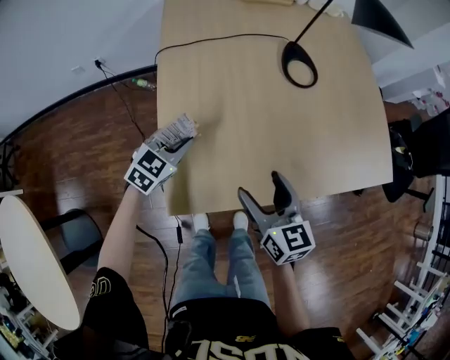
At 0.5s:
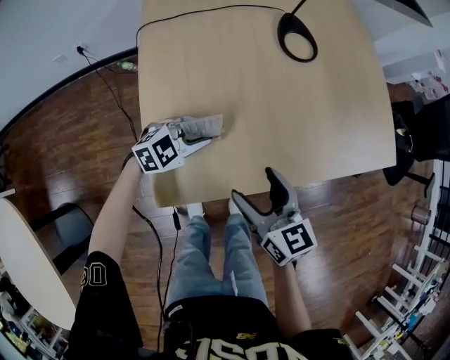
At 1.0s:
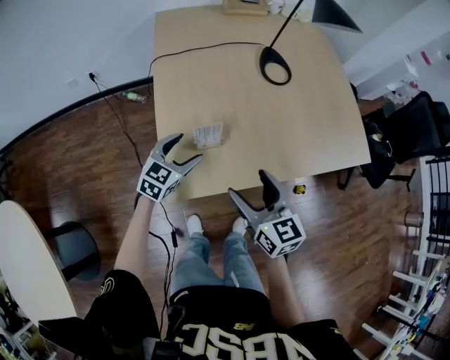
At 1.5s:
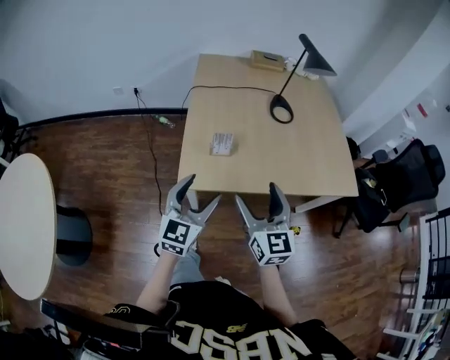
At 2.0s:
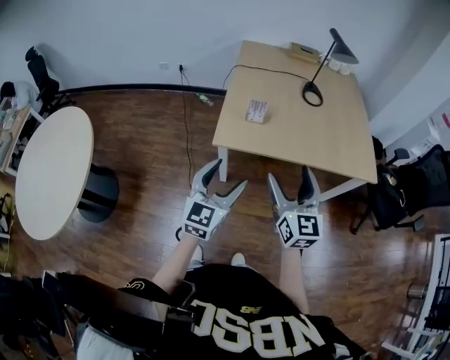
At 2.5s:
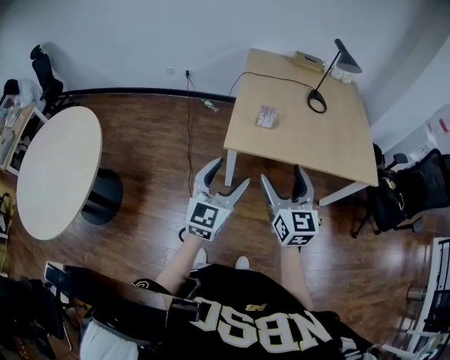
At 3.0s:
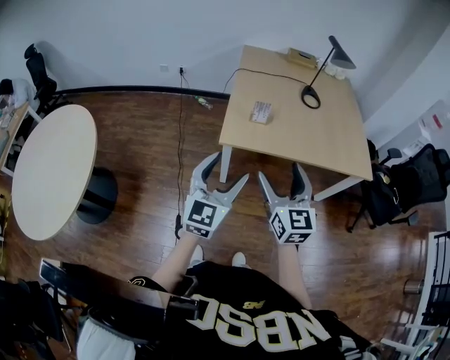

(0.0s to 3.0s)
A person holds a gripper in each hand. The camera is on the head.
0.0s - 1.5s: The left gripper changes place by some 40 cm, rotates some 40 degrees, and opens. Meanwhile the right gripper moves roughly 25 cm, and changes its angle by roughly 20 degrees.
1.5s - 3.0s: The two grippers go some 20 cm backward.

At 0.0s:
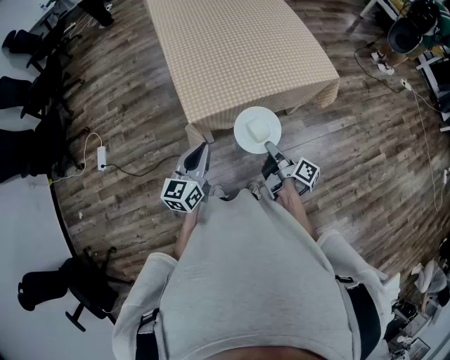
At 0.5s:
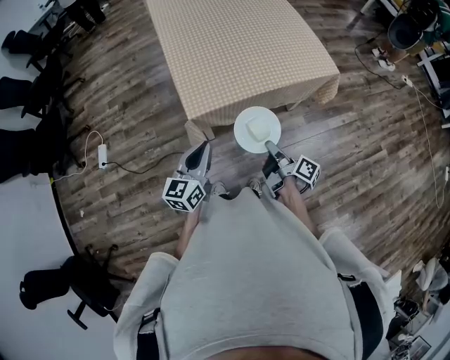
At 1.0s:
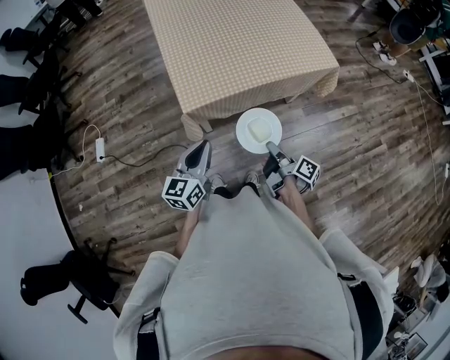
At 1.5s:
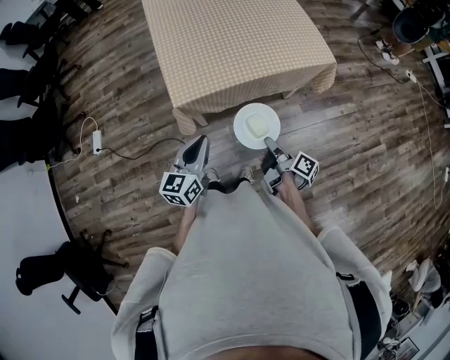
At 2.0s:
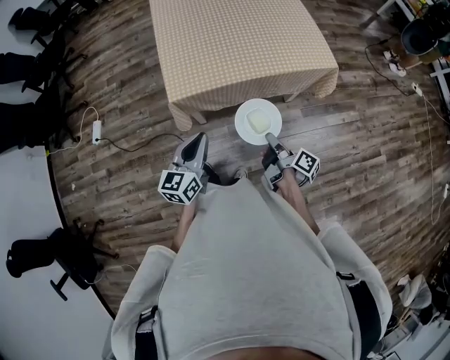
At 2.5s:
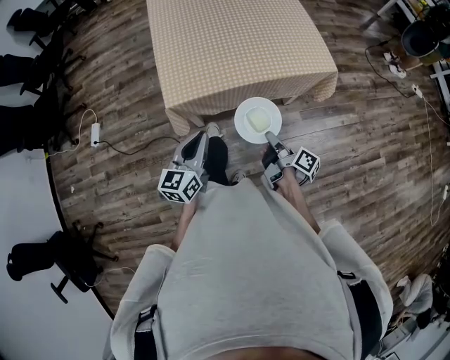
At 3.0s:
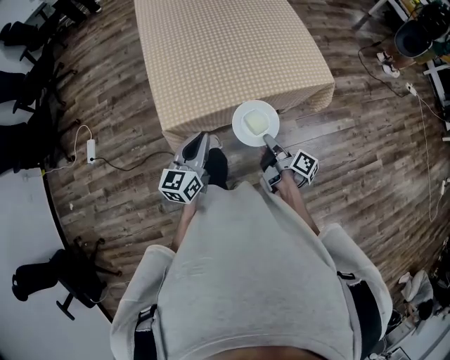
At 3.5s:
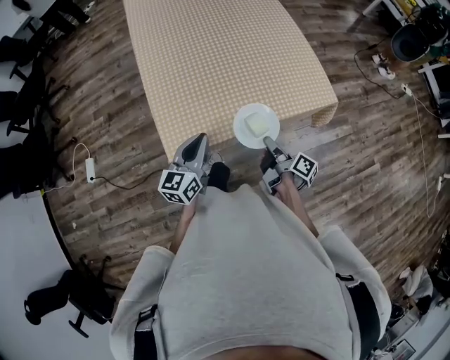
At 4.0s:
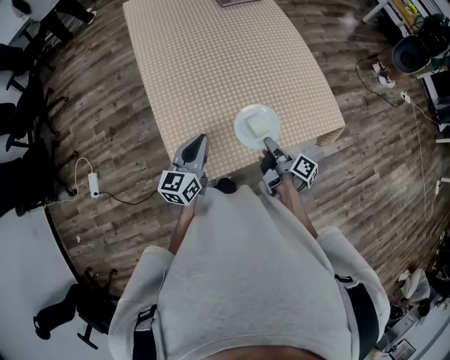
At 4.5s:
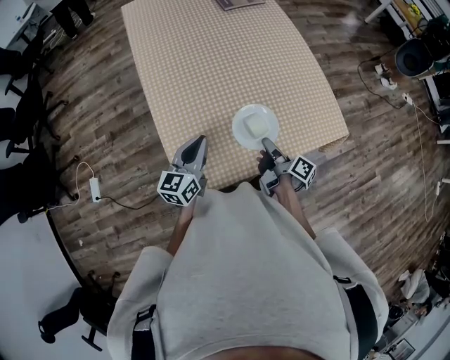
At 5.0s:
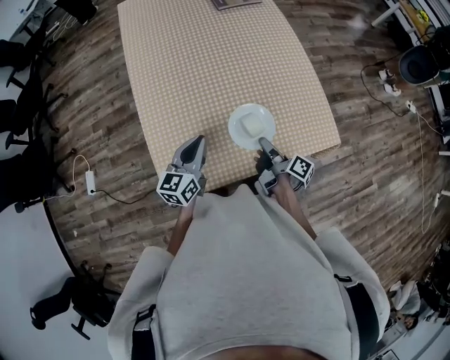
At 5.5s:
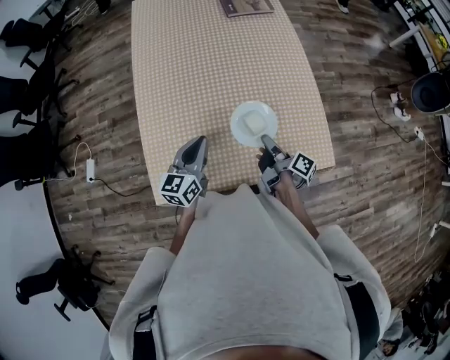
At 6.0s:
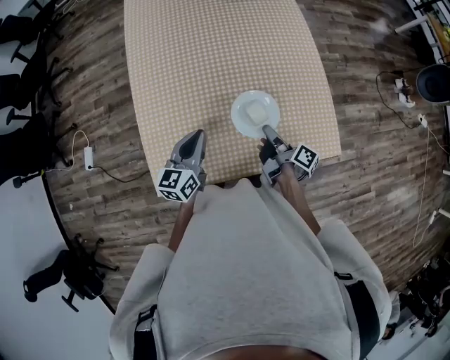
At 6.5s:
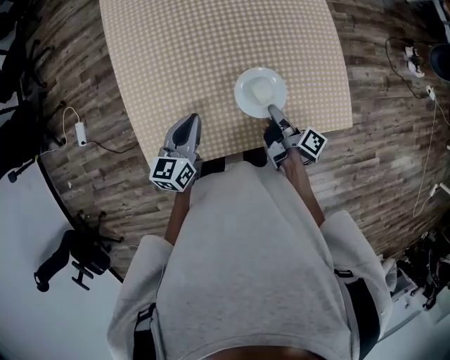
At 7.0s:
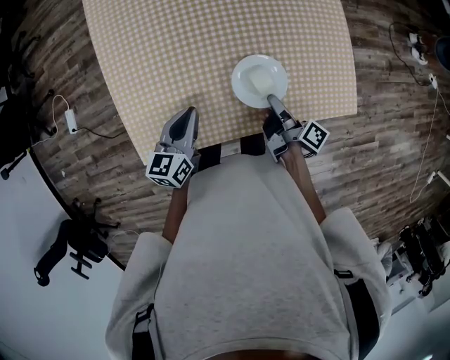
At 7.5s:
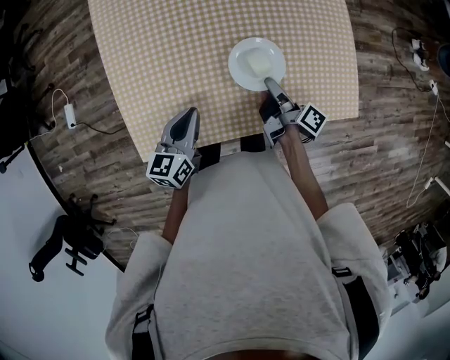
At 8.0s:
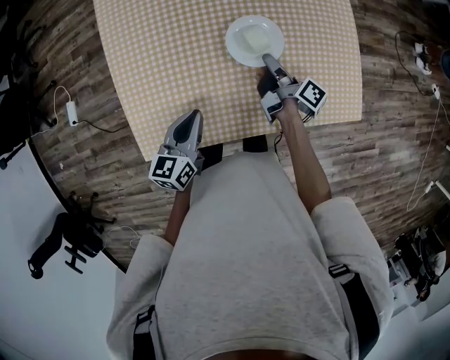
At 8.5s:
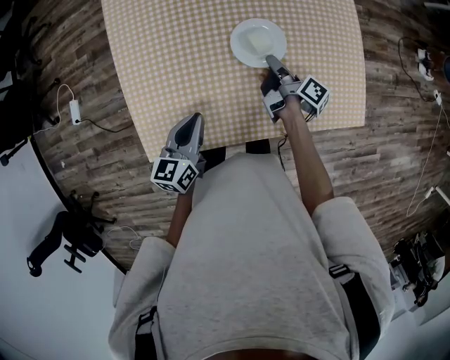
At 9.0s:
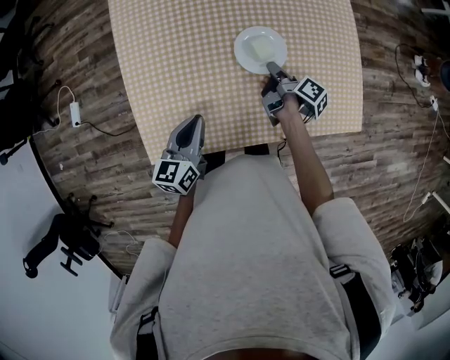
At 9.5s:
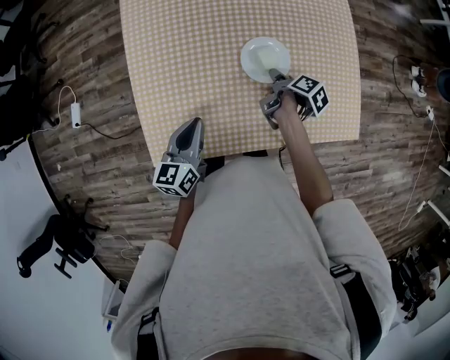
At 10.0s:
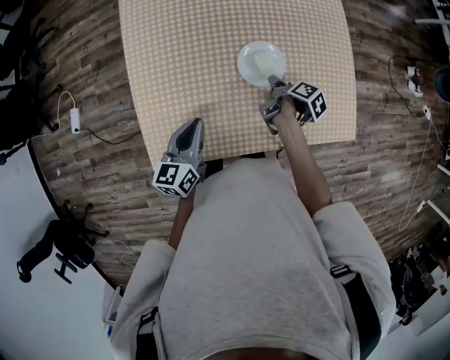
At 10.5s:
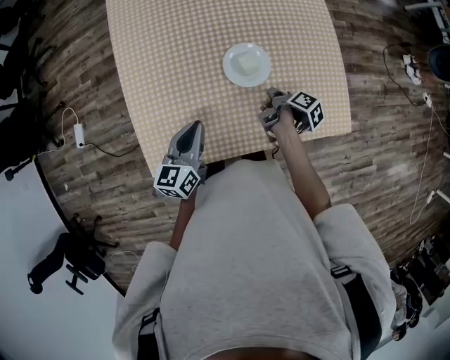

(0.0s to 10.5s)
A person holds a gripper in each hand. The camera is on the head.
0.0s - 2.0s: The left gripper moves approximately 10 cm.
2.0s - 4.0s: The left gripper moves about 35 cm.
4.0s - 6.5s: The left gripper changes place by about 15 cm.
6.5s - 8.5s: The left gripper moves about 5 cm.
8.5s - 10.5s: The left gripper shifts by some 5 cm.

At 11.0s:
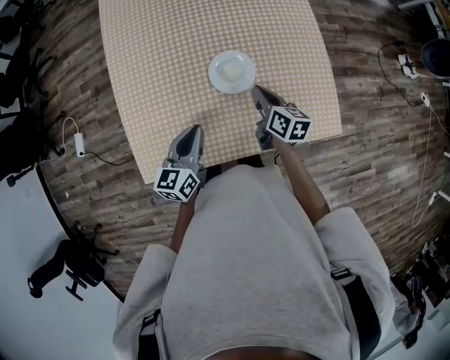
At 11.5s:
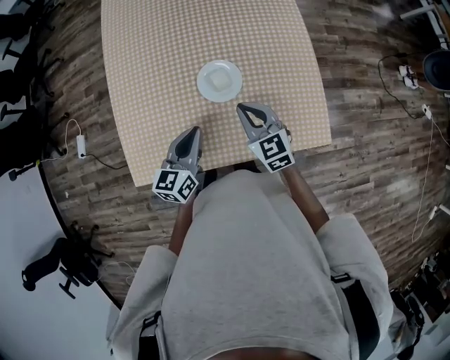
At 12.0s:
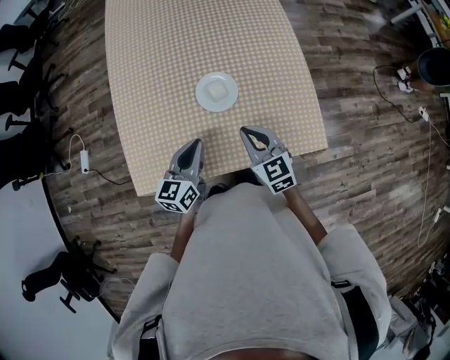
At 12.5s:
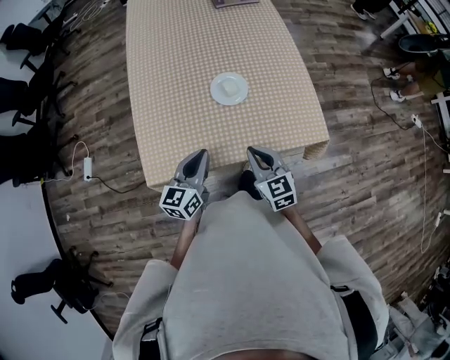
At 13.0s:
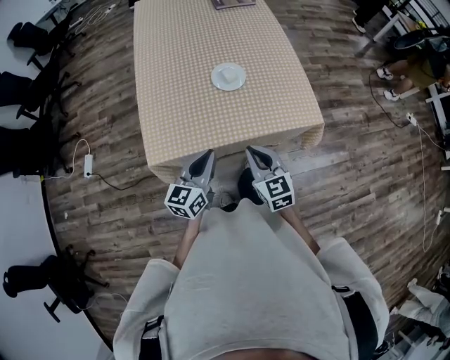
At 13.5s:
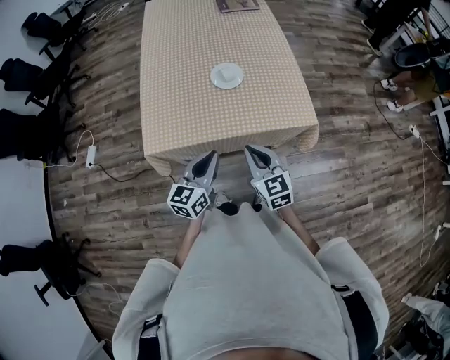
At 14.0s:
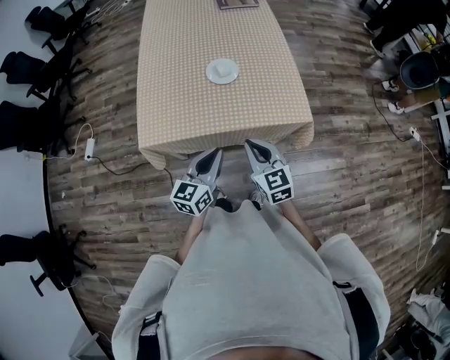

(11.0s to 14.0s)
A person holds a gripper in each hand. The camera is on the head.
11.0s - 12.5s: The left gripper changes place by roughly 10 cm.
12.5s - 14.0s: The left gripper shifts by roughly 20 cm.

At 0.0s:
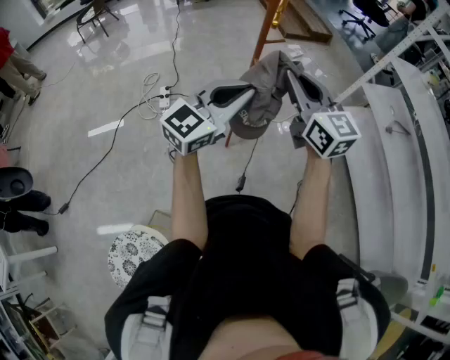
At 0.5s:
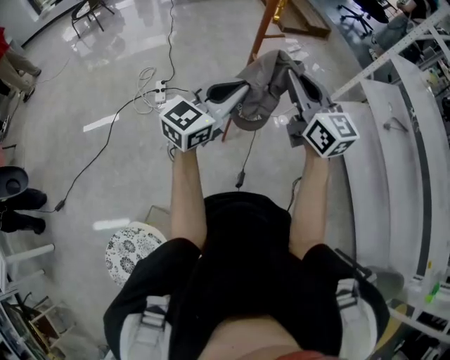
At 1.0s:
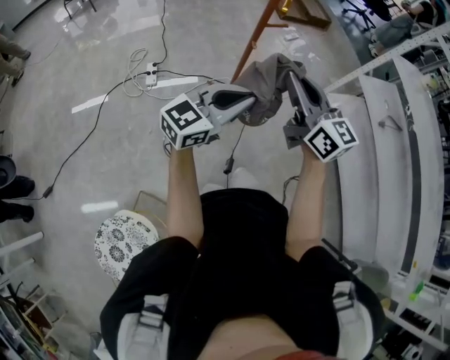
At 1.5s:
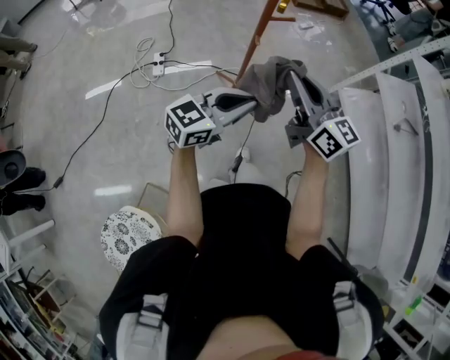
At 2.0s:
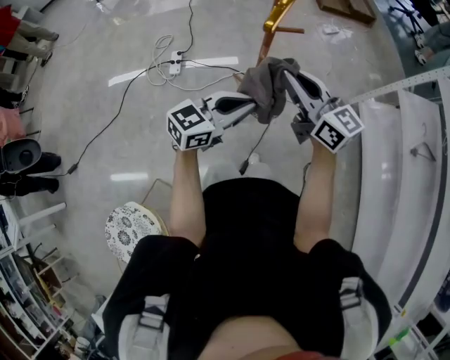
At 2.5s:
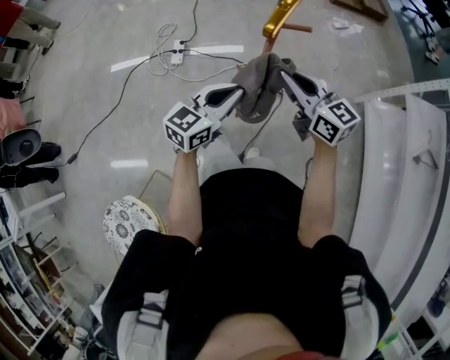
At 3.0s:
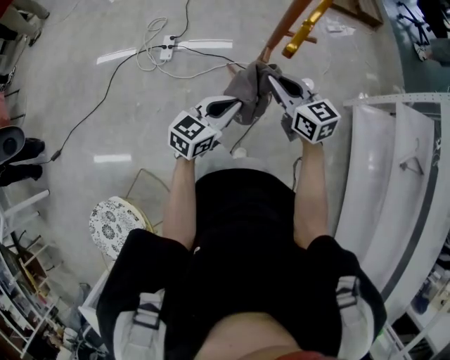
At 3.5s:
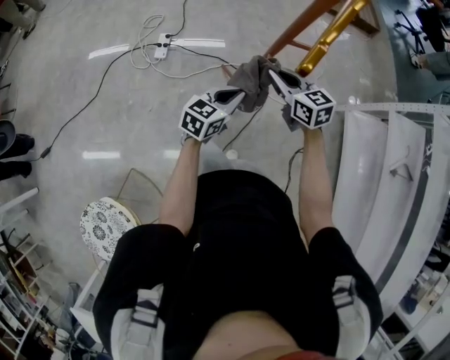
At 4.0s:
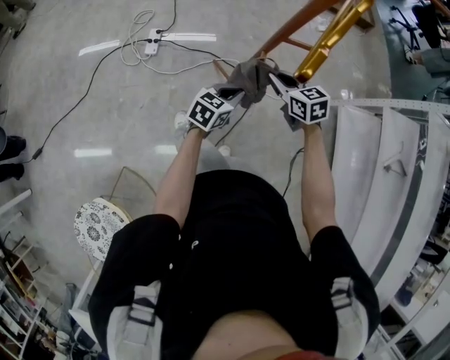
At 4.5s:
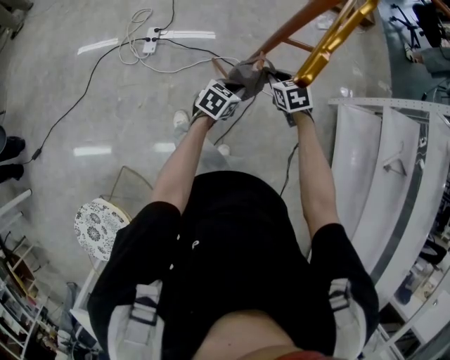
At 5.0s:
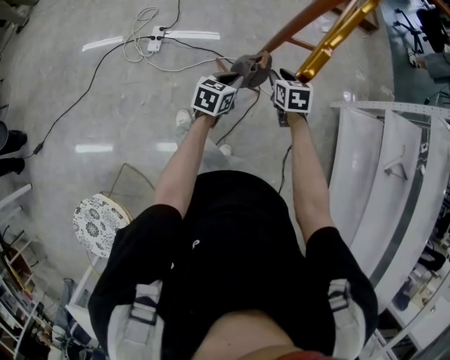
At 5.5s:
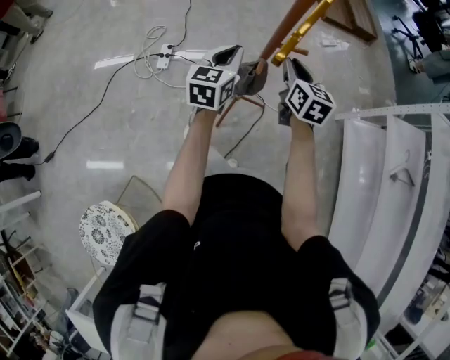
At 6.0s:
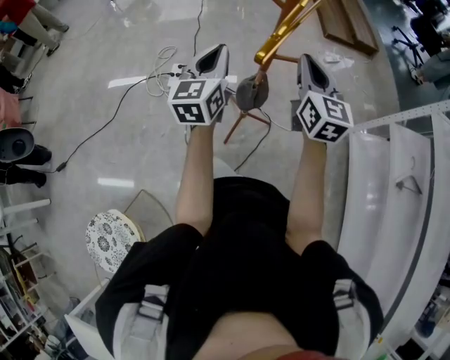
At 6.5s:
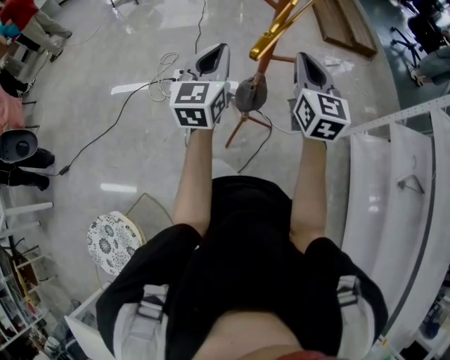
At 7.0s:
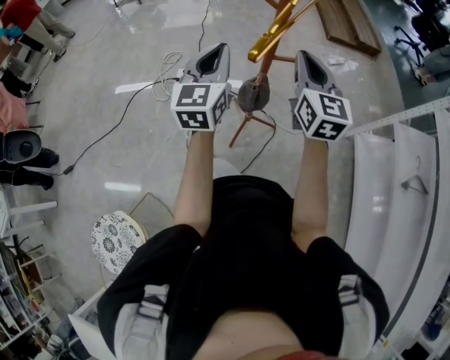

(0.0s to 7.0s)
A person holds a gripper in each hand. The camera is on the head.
0.0s - 2.0s: Both grippers travel together forward and downward, roughly 20 cm. The right gripper turns by approximately 30 degrees. Meanwhile the left gripper turns by roughly 30 degrees.
2.0s - 3.5s: The grippers both shift downward and forward by some 20 cm. The right gripper changes its angle by some 30 degrees. The left gripper rotates roughly 20 degrees.
3.5s - 5.0s: The left gripper heads downward and forward, covering some 10 cm, while the right gripper travels downward and to the right by about 10 cm, changes its angle by about 30 degrees, and opens.
5.0s - 7.0s: Both grippers move upward, some 30 cm. The left gripper changes its angle by roughly 40 degrees. Meanwhile the right gripper tilts its fingers some 40 degrees upward, and closes up.

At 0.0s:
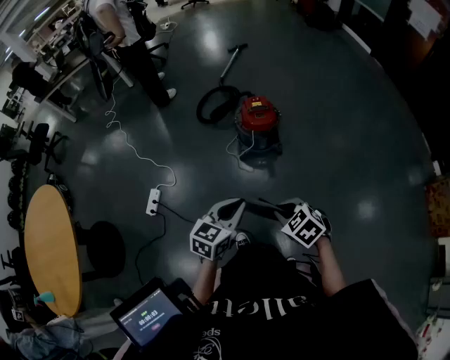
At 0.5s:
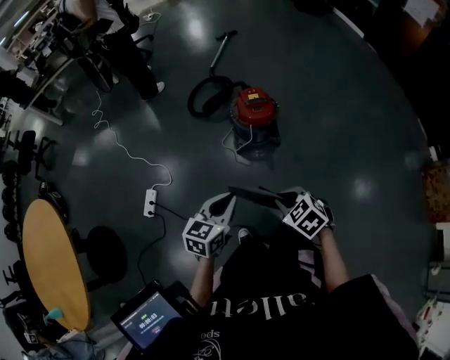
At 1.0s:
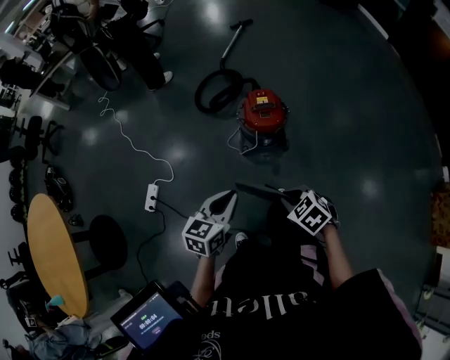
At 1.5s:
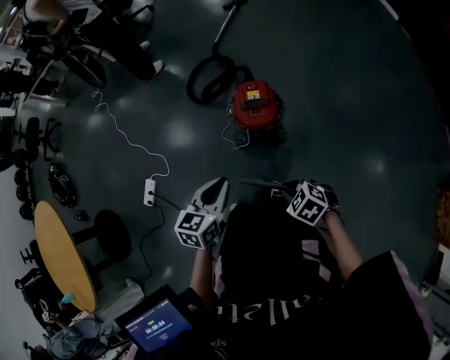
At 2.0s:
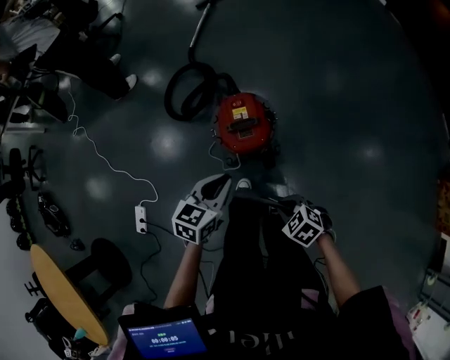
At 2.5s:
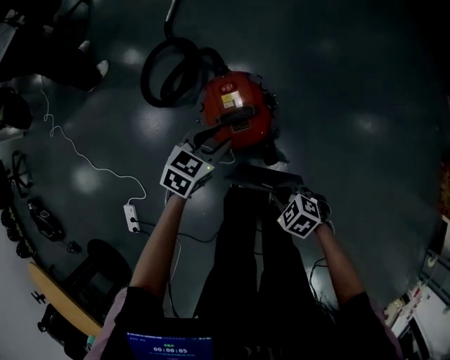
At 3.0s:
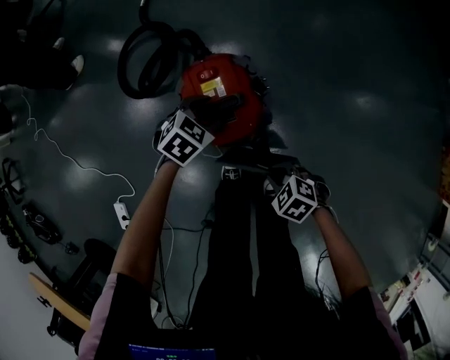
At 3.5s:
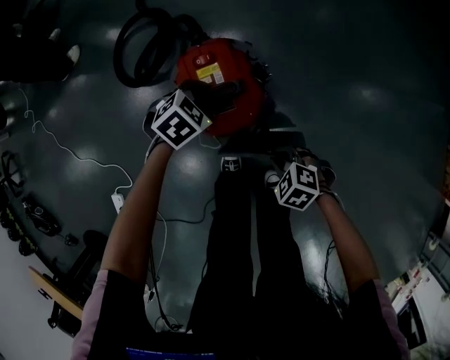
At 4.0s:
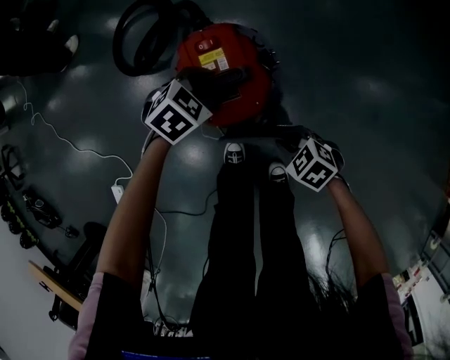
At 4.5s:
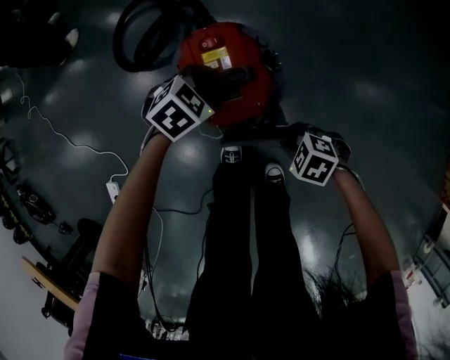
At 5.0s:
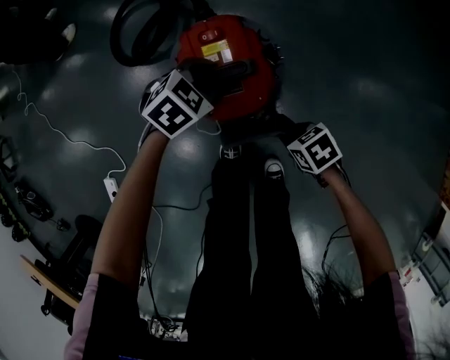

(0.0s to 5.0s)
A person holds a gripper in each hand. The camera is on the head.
0.0s - 2.5s: The pair of grippers is taken roughly 60 cm. The left gripper turns by about 30 degrees, and opens.
2.5s - 5.0s: The two grippers go about 15 cm downward. The left gripper swivels approximately 20 degrees; the right gripper swivels some 30 degrees.
